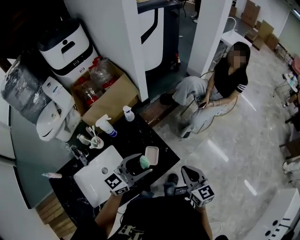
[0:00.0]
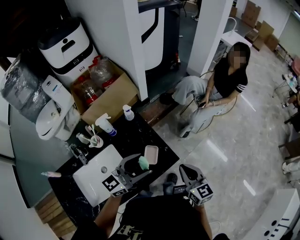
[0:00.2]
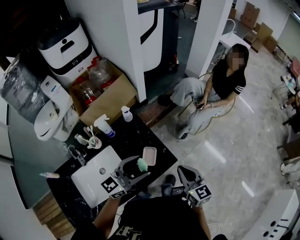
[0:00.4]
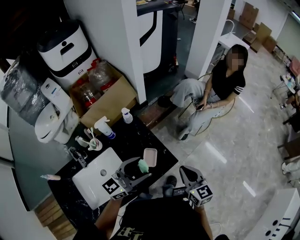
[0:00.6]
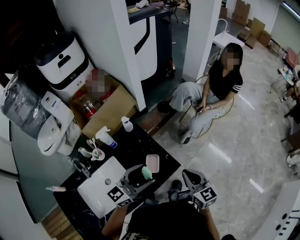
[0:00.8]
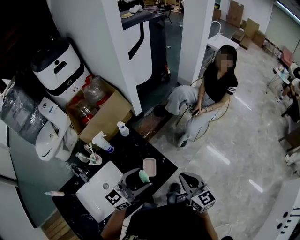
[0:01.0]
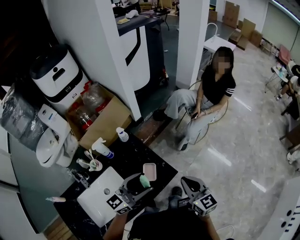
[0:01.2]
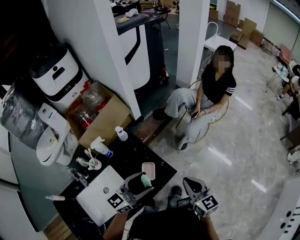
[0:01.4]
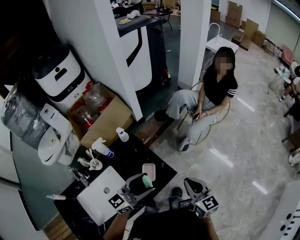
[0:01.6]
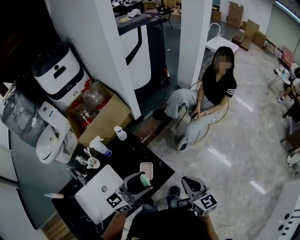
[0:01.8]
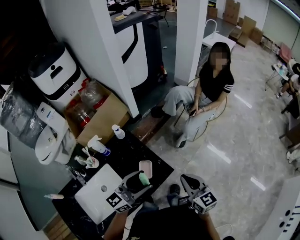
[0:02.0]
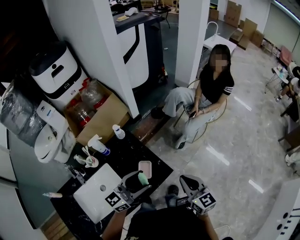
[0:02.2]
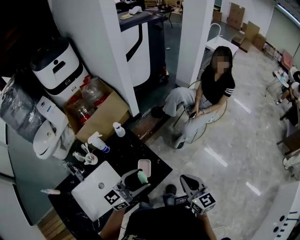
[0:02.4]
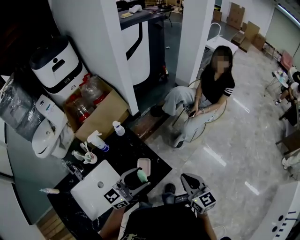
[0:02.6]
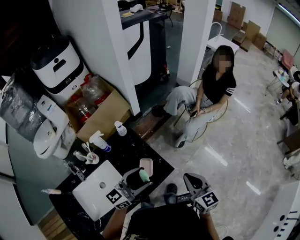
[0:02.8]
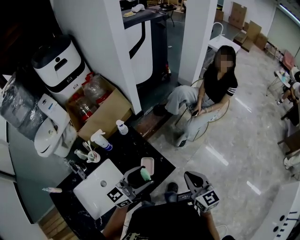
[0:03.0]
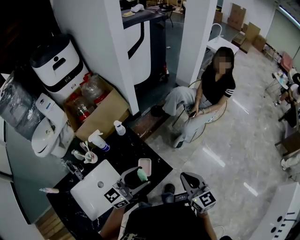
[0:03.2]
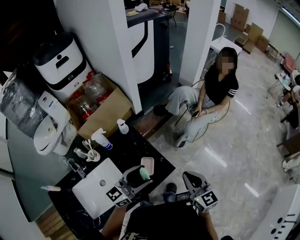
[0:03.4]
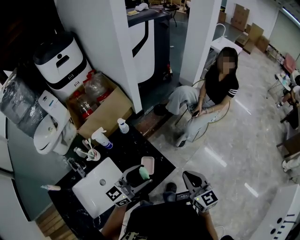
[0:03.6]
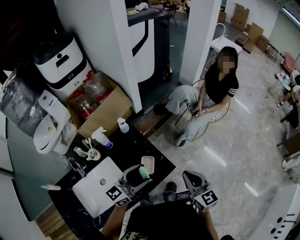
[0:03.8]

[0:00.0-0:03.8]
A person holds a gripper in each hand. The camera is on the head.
0:00.0 to 0:03.8: The grippers stay close to where they were, moving slightly.

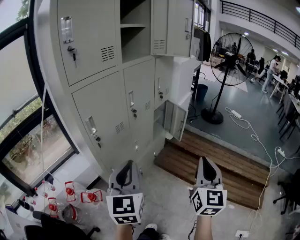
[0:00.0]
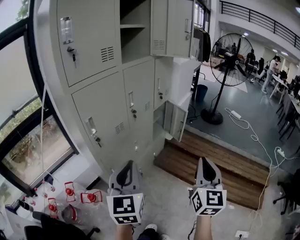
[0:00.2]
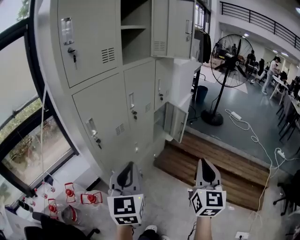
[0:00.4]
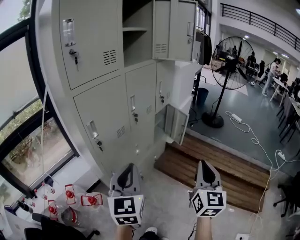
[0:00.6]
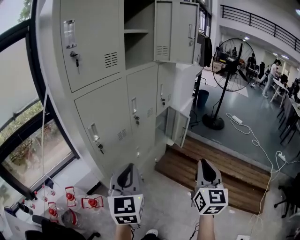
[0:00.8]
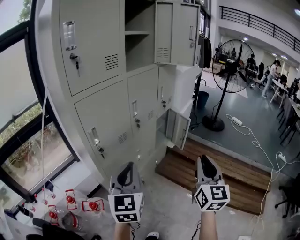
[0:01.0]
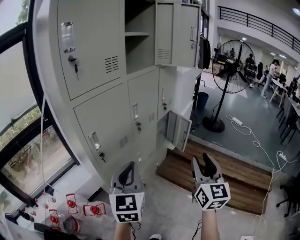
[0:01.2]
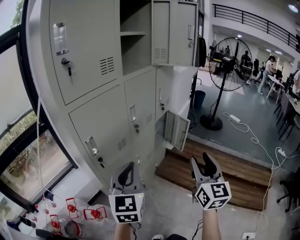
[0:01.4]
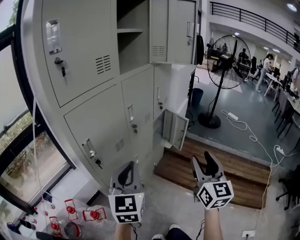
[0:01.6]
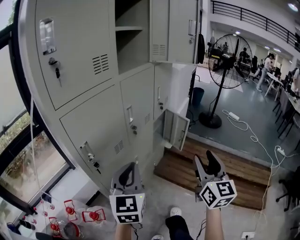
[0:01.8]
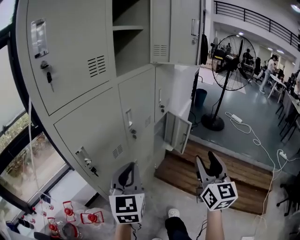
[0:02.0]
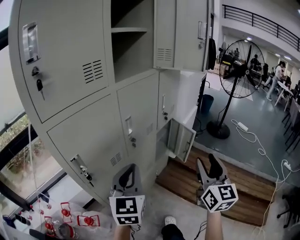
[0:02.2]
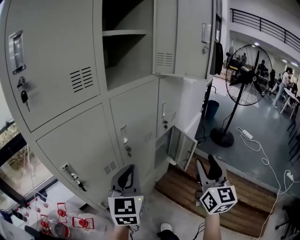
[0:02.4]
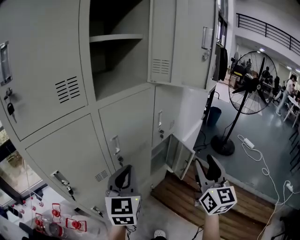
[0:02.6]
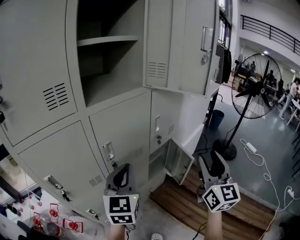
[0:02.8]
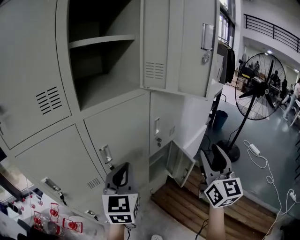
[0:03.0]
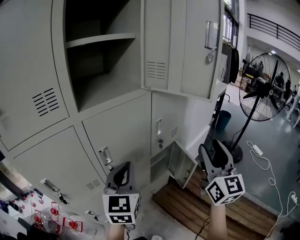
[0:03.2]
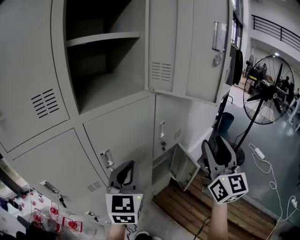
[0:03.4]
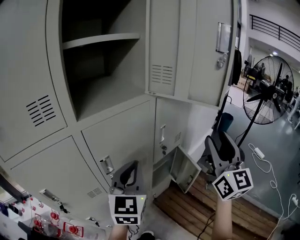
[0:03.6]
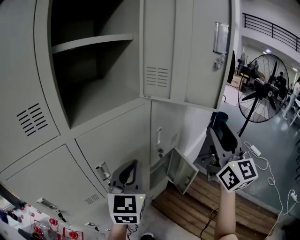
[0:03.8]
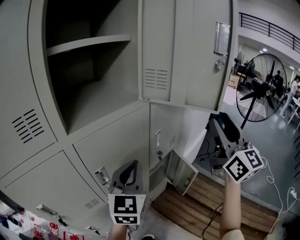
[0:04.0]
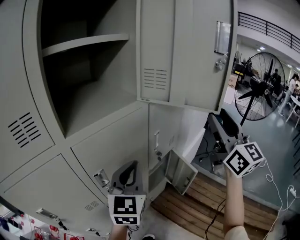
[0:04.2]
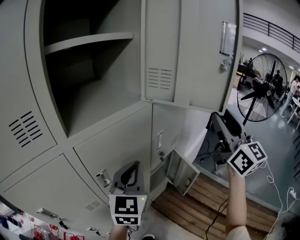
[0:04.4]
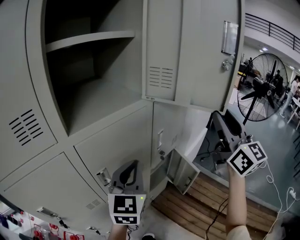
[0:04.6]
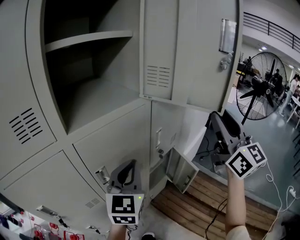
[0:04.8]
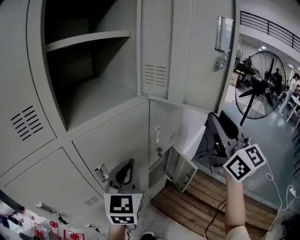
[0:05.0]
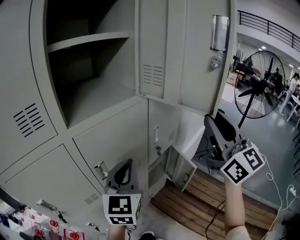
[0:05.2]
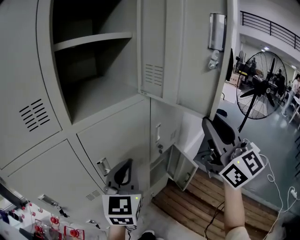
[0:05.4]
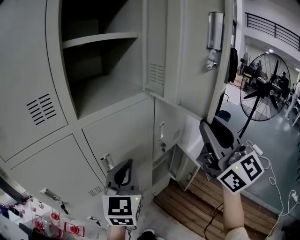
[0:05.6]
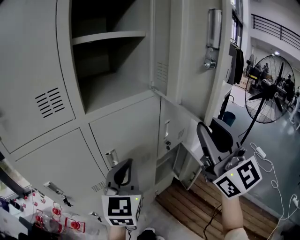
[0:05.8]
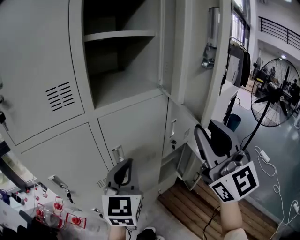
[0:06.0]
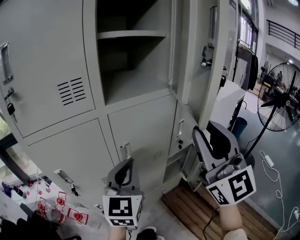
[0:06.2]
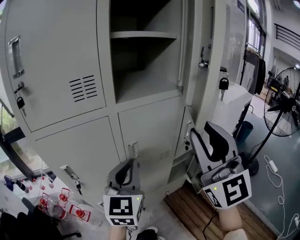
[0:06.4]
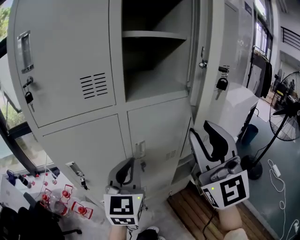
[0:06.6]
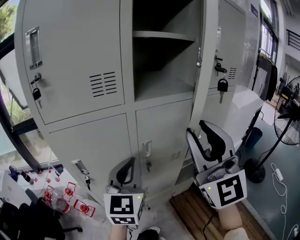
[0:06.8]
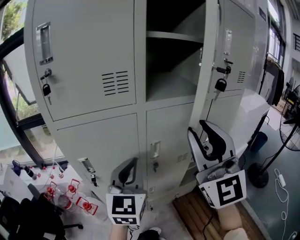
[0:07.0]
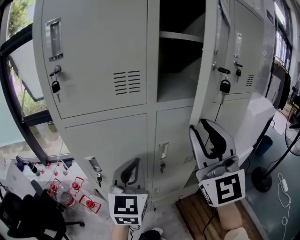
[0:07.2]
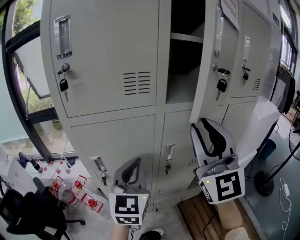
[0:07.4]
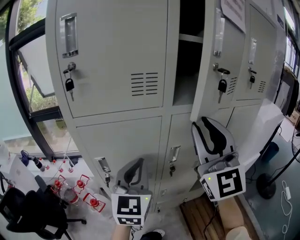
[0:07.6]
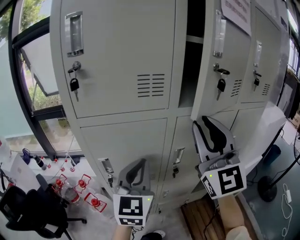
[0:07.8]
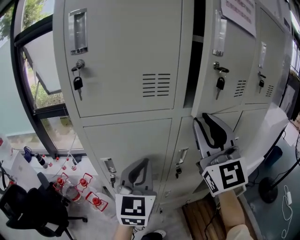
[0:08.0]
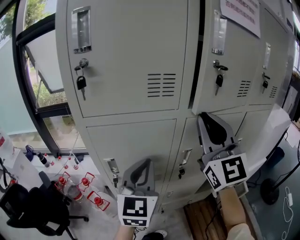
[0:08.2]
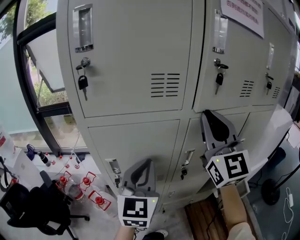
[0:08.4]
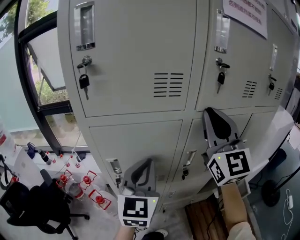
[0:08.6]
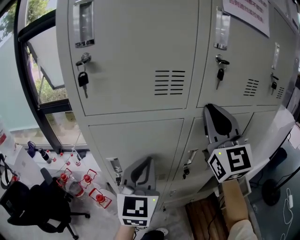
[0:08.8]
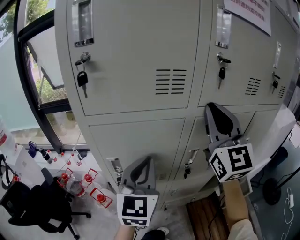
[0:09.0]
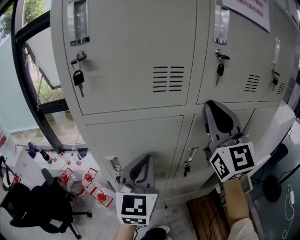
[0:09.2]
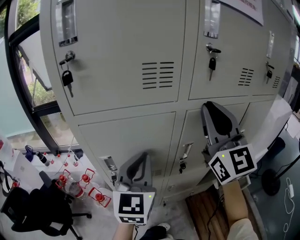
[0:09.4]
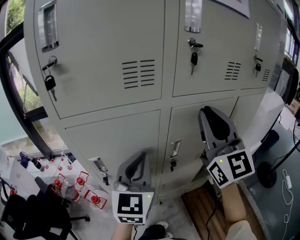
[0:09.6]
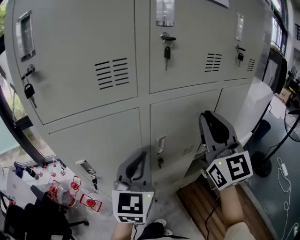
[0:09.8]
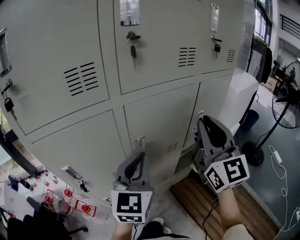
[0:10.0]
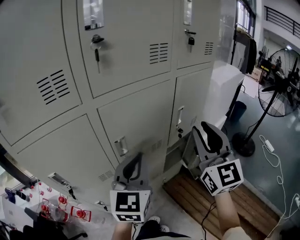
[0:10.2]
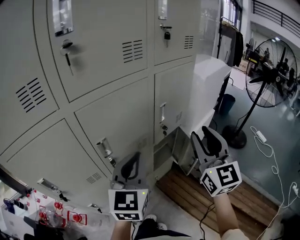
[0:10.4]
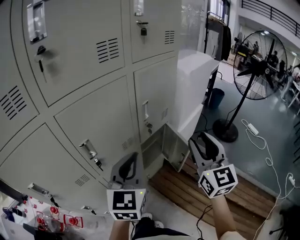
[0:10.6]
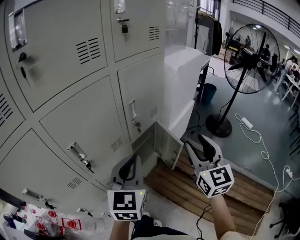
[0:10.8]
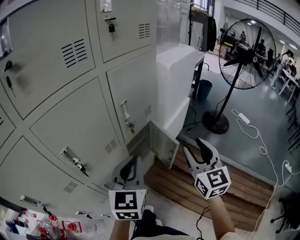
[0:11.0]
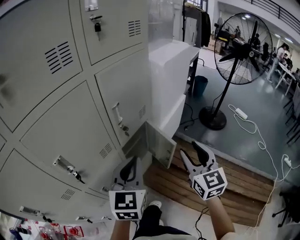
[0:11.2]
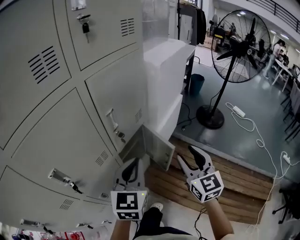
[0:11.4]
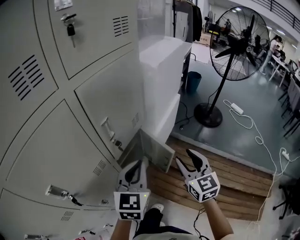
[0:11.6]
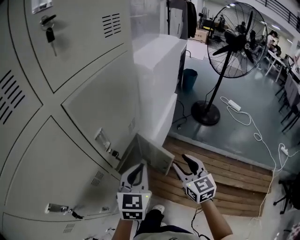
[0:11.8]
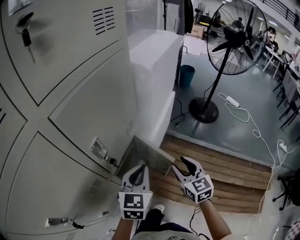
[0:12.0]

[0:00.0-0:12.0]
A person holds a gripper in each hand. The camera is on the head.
0:00.0 to 0:01.6: Both grippers travel together forward, approximately 10 cm. The right gripper opens.
0:01.6 to 0:03.0: Both grippers travel together forward and to the right, about 30 cm.
0:03.0 to 0:04.4: The left gripper shifts some 10 cm forward. Meanwhile the right gripper goes about 15 cm forward and upward.
0:04.4 to 0:06.0: The right gripper shifts roughly 20 cm to the left and backward, and closes up, while the left gripper is displaced backward and to the left by roughly 10 cm.
0:06.0 to 0:07.6: The left gripper travels to the left by some 15 cm; the right gripper moves to the left and forward, some 20 cm.
0:07.6 to 0:09.0: The right gripper heads forward, covering roughly 10 cm.
0:09.0 to 0:10.4: The right gripper shifts by some 35 cm, swivels about 30 degrees, and opens up. The left gripper changes place by roughly 25 cm, and turns by about 30 degrees.
0:10.4 to 0:12.0: The left gripper shifts approximately 35 cm forward, downward and to the right, and rotates roughly 30 degrees, while the right gripper moves downward, forward and to the right, about 35 cm, and swivels some 30 degrees.

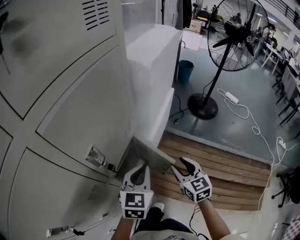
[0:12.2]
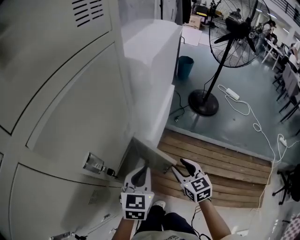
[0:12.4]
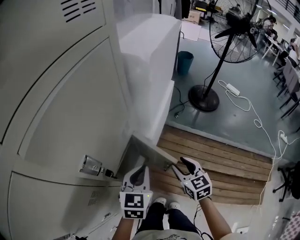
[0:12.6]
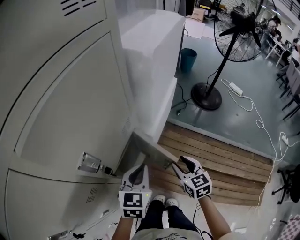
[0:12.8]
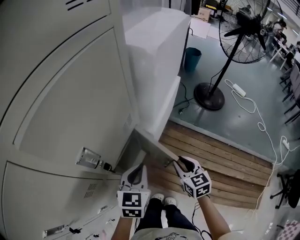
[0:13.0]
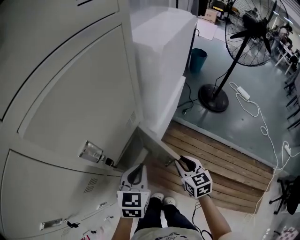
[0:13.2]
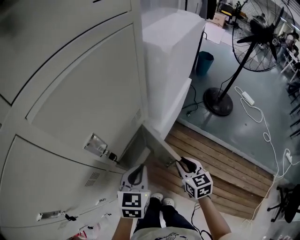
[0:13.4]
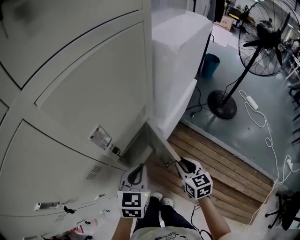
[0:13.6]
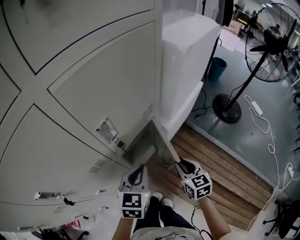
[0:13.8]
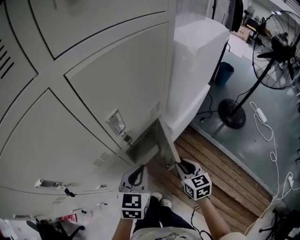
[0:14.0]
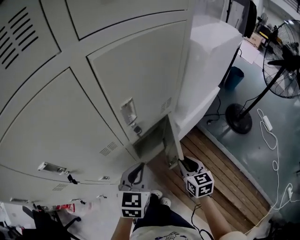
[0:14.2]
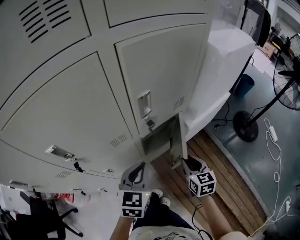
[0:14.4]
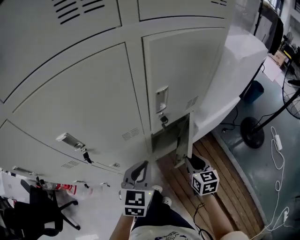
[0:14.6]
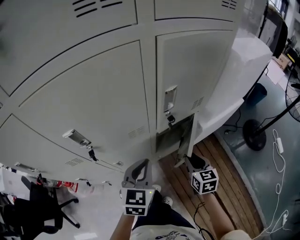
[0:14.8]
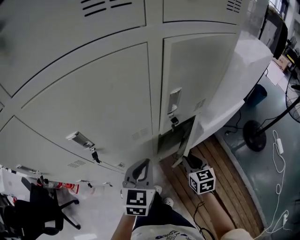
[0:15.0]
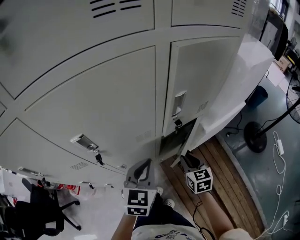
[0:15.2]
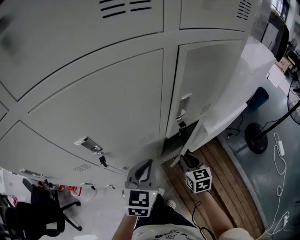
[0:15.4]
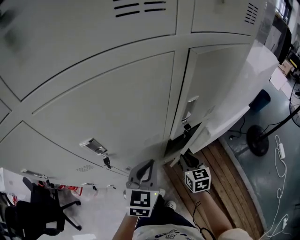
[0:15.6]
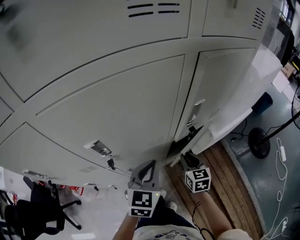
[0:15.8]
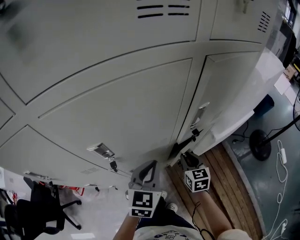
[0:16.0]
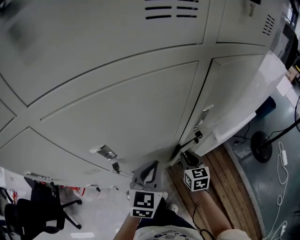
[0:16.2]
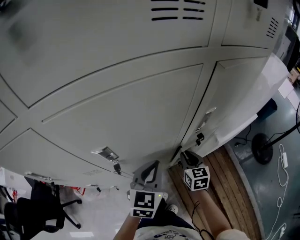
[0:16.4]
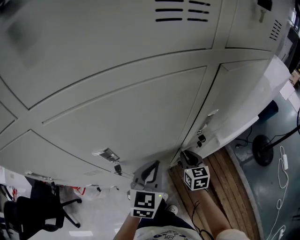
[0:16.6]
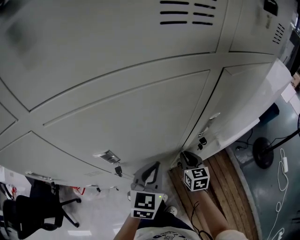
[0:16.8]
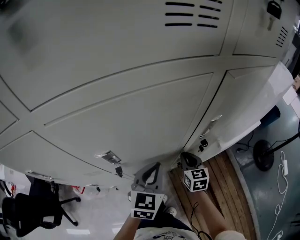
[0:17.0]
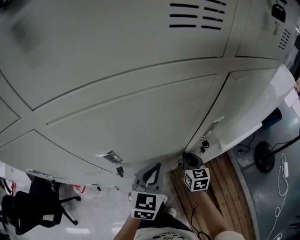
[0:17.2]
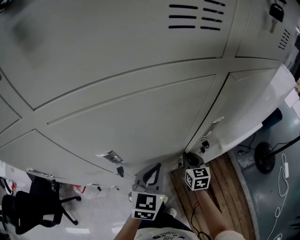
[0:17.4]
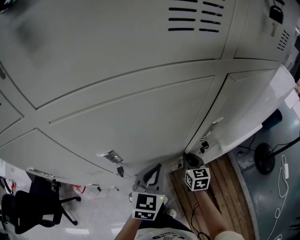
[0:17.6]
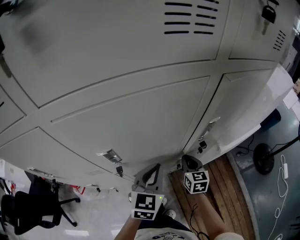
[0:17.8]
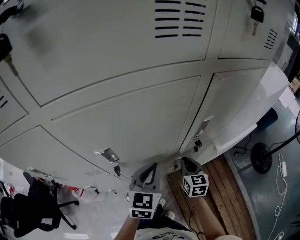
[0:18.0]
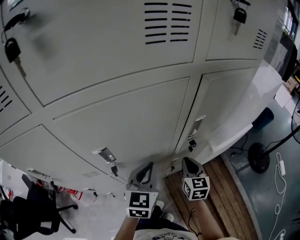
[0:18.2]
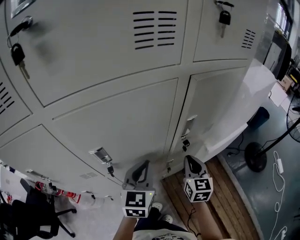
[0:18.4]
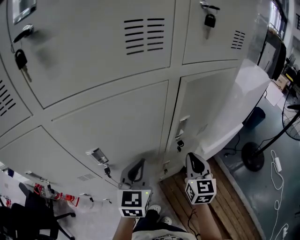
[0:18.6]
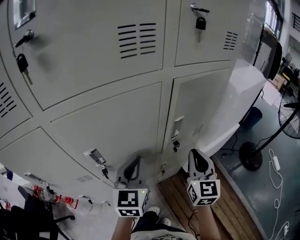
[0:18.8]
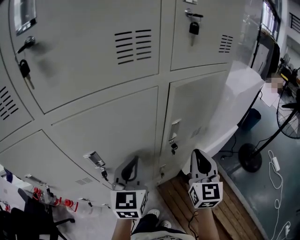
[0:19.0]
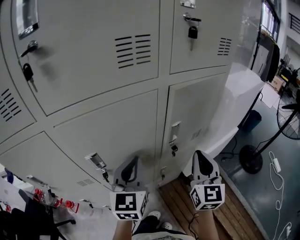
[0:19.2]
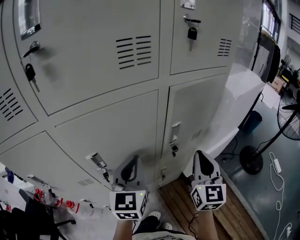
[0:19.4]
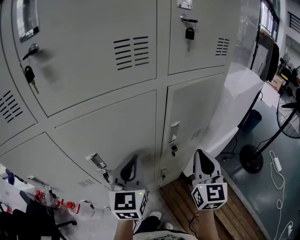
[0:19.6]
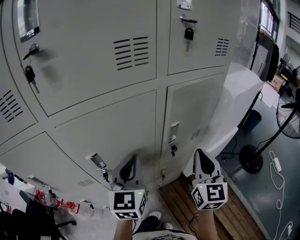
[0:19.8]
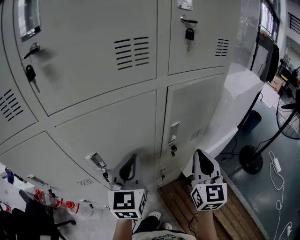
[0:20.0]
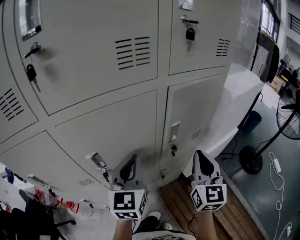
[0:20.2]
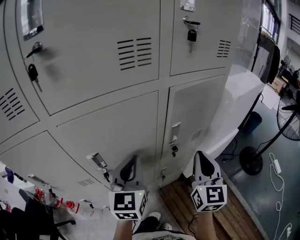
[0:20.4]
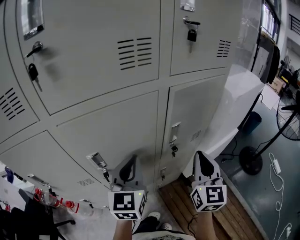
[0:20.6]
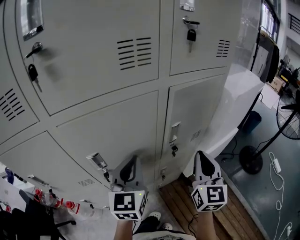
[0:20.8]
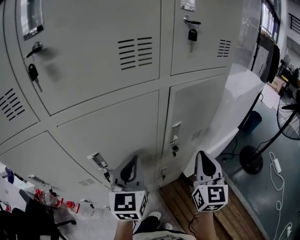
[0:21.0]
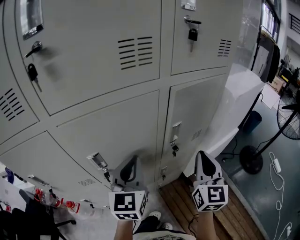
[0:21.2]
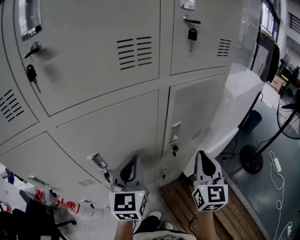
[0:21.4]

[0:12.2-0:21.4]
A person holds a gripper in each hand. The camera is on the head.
0:12.2 to 0:13.8: The left gripper moves roughly 10 cm, while the right gripper travels downward by about 5 cm, and closes up.
0:13.8 to 0:15.2: Both grippers move to the left, some 15 cm. The left gripper turns by some 20 degrees.
0:15.2 to 0:16.8: The right gripper shifts approximately 10 cm forward and to the left. Meanwhile the left gripper moves some 5 cm.
0:16.8 to 0:18.4: The right gripper shifts approximately 10 cm upward and to the right.
0:18.4 to 0:19.8: The left gripper travels upward by approximately 10 cm; the right gripper moves upward, approximately 15 cm.
0:19.8 to 0:21.4: The two grippers keep their place.
